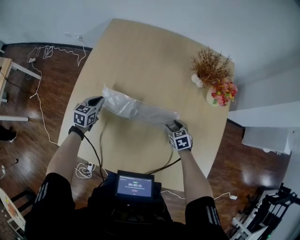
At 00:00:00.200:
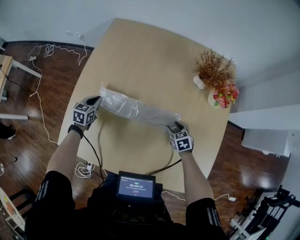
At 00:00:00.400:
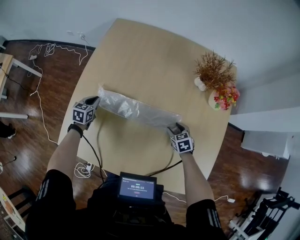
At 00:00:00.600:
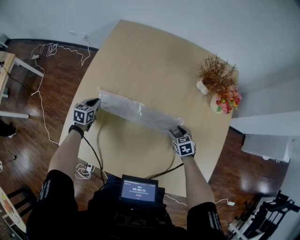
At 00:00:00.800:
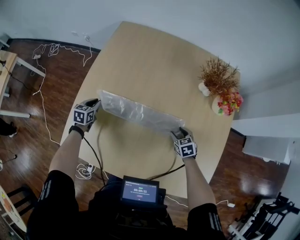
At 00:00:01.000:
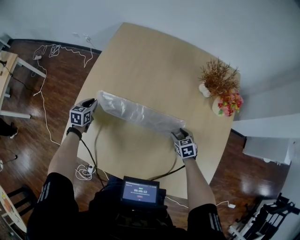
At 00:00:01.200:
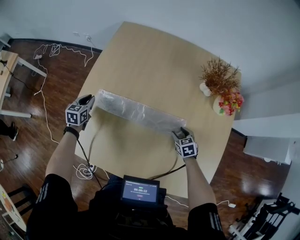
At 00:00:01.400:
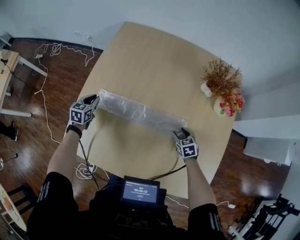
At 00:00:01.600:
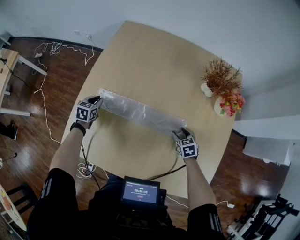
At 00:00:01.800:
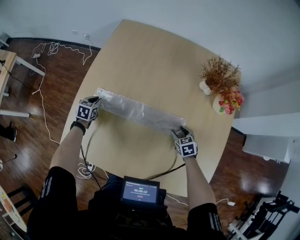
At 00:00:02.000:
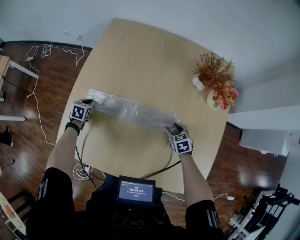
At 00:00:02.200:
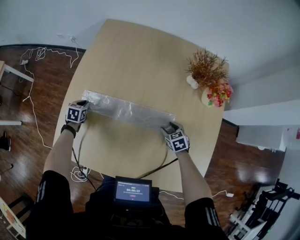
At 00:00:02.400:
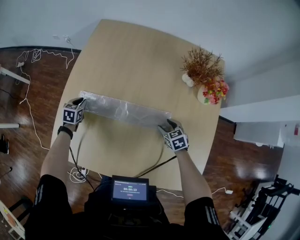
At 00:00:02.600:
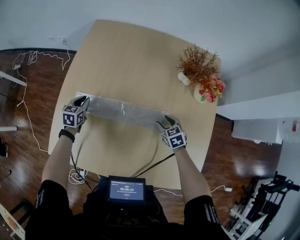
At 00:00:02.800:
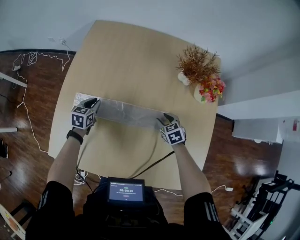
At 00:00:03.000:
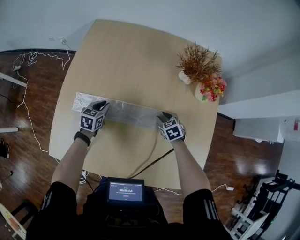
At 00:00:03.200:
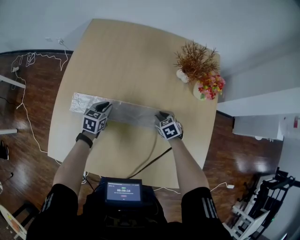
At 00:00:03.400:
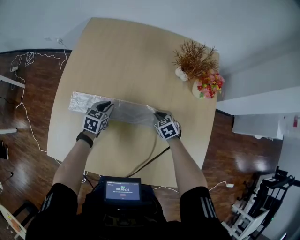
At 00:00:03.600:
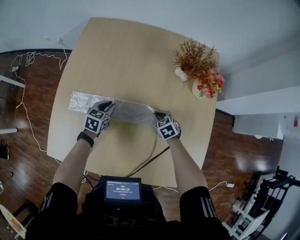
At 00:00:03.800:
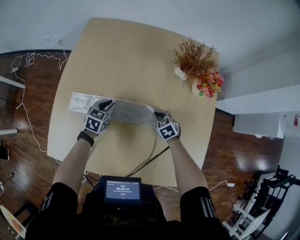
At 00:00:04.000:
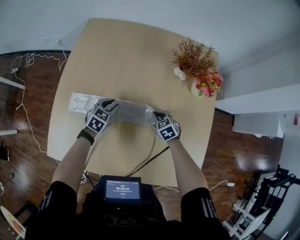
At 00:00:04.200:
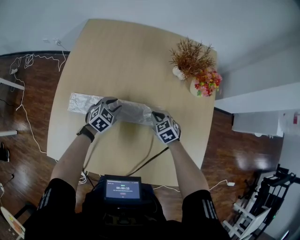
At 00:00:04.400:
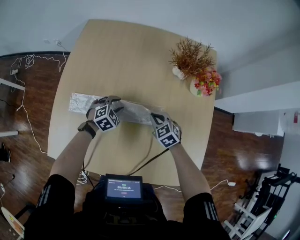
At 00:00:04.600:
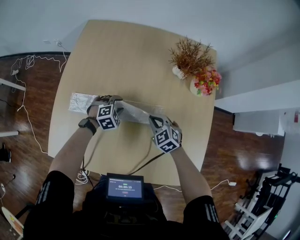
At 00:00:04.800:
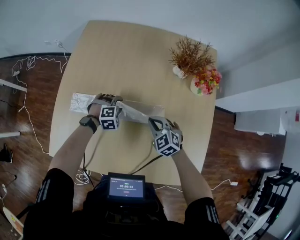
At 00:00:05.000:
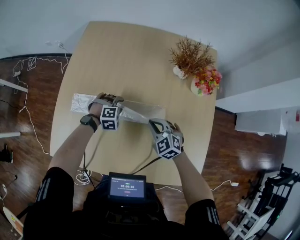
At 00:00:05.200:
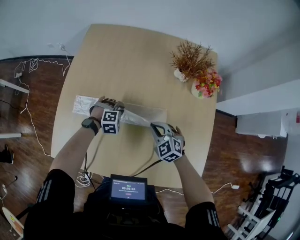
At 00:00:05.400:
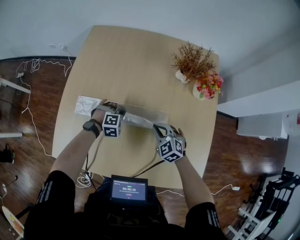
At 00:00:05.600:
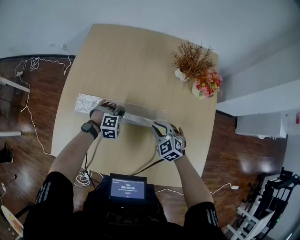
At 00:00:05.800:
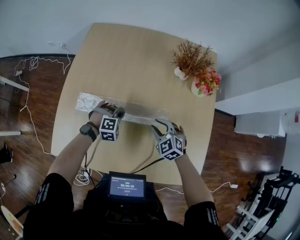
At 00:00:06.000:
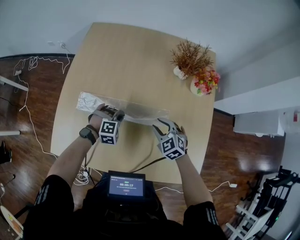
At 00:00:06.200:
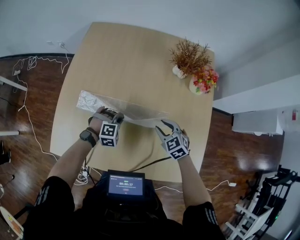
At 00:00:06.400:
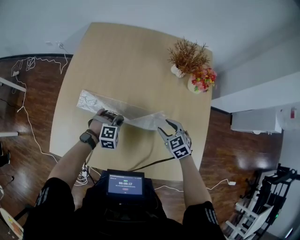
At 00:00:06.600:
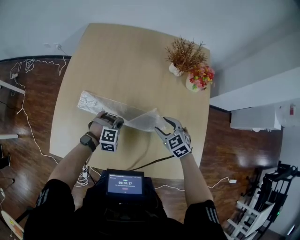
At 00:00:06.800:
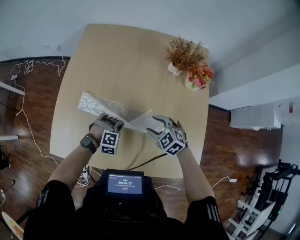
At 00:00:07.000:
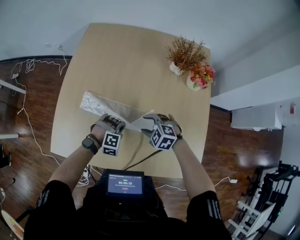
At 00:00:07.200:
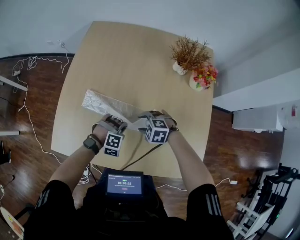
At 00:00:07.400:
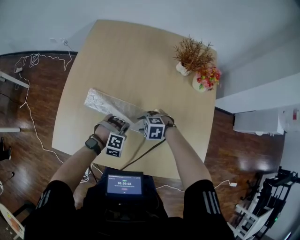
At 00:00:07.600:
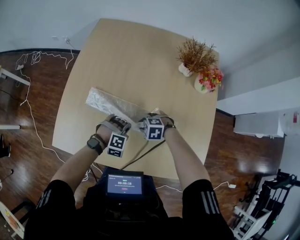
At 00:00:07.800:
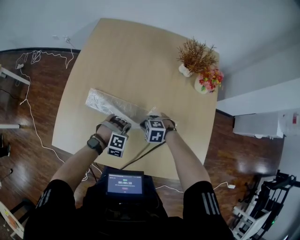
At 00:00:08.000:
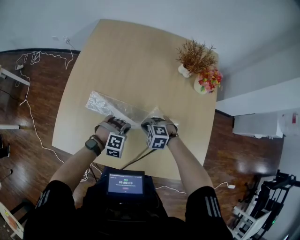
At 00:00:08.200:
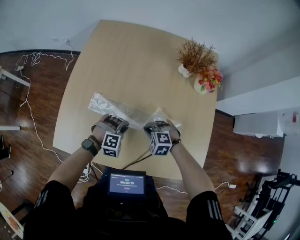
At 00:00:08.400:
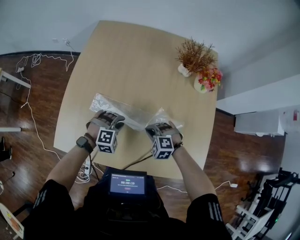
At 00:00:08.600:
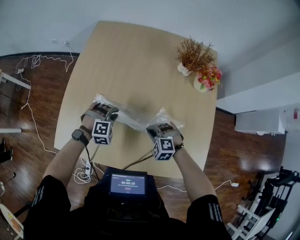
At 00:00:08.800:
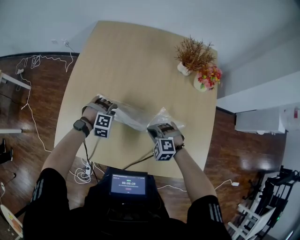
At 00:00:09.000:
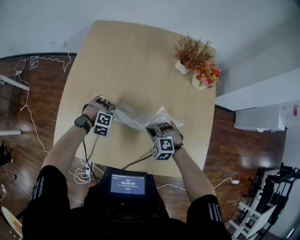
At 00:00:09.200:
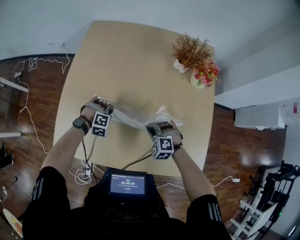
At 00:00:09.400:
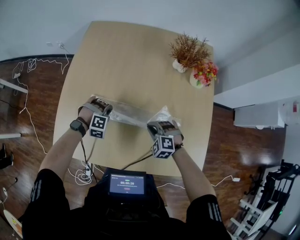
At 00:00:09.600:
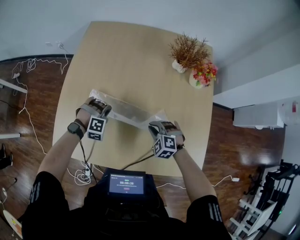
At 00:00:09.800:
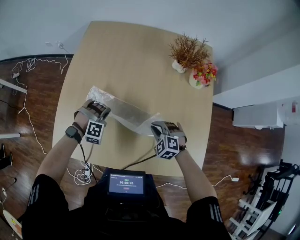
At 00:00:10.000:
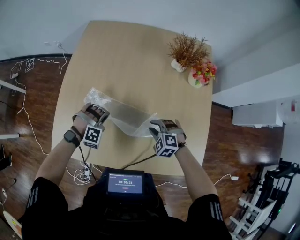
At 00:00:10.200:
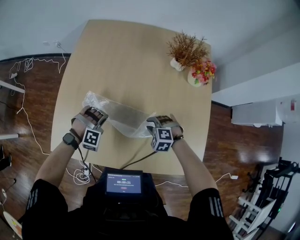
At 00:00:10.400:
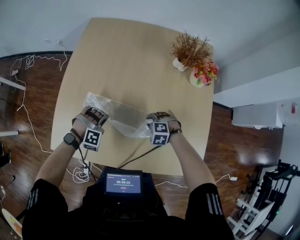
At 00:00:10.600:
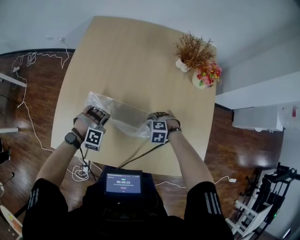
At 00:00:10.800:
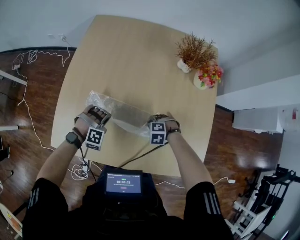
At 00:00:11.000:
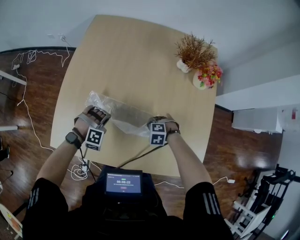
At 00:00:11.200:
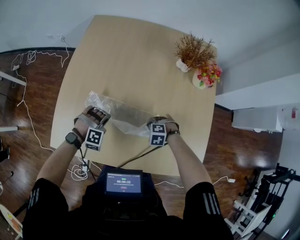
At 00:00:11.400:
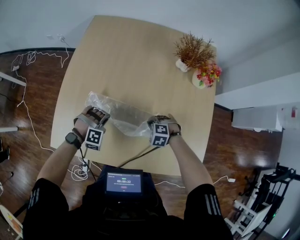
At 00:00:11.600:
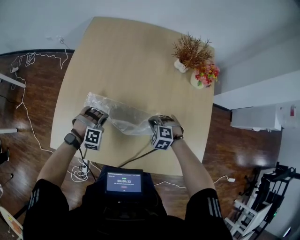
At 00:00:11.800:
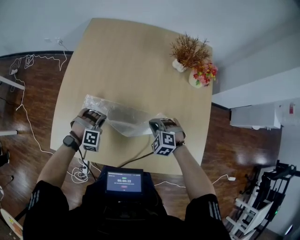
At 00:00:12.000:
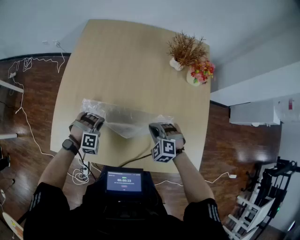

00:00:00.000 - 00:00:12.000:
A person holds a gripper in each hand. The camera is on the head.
00:00:00.000 - 00:00:01.600: The left gripper travels to the left by about 10 cm.
00:00:01.600 - 00:00:03.000: The left gripper moves to the right, roughly 15 cm. Meanwhile the right gripper ends up approximately 5 cm from where it was.
00:00:03.000 - 00:00:04.400: The right gripper shifts some 5 cm upward, and closes its fingers, while the left gripper goes approximately 10 cm to the right, and twists roughly 50 degrees clockwise, seen from behind.
00:00:04.400 - 00:00:06.000: Both grippers travel together backward, roughly 5 cm. The right gripper opens its fingers. Meanwhile the left gripper changes its angle by some 30 degrees, and closes up.
00:00:06.000 - 00:00:07.600: The left gripper moves some 10 cm. The right gripper moves roughly 15 cm, and changes its angle by roughly 50 degrees.
00:00:07.600 - 00:00:09.000: The right gripper heads upward, covering approximately 5 cm, rotates roughly 30 degrees, and closes its fingers. Meanwhile the left gripper changes place by roughly 10 cm, and opens up.
00:00:09.000 - 00:00:10.400: The left gripper heads upward, covering roughly 5 cm; the right gripper heads downward, covering about 5 cm, and opens up.
00:00:10.400 - 00:00:12.000: The right gripper moves upward, roughly 10 cm, swivels about 20 degrees, and closes.

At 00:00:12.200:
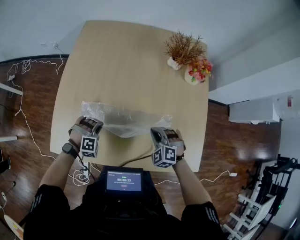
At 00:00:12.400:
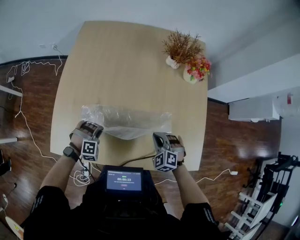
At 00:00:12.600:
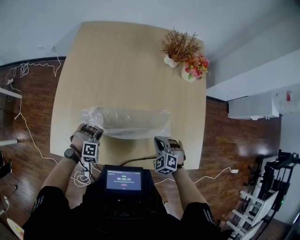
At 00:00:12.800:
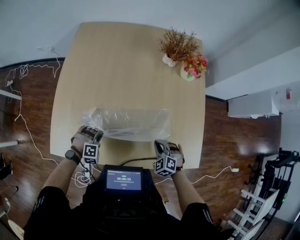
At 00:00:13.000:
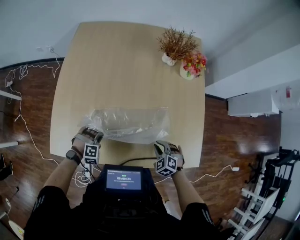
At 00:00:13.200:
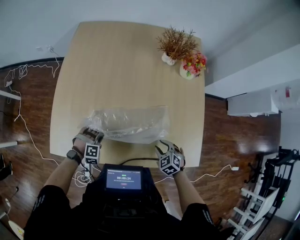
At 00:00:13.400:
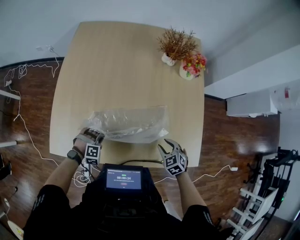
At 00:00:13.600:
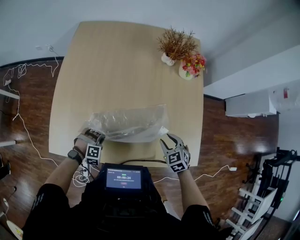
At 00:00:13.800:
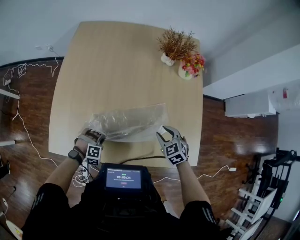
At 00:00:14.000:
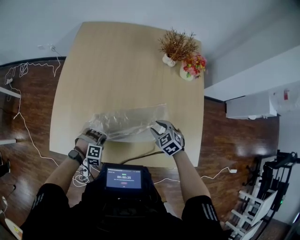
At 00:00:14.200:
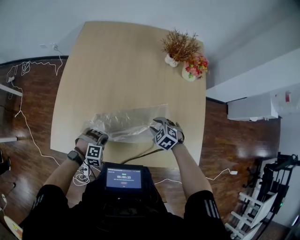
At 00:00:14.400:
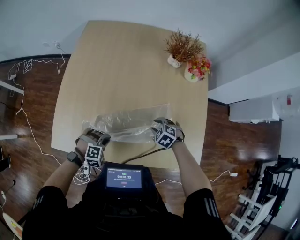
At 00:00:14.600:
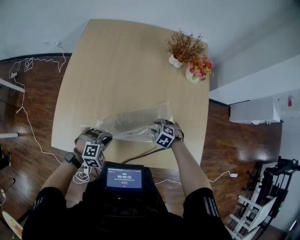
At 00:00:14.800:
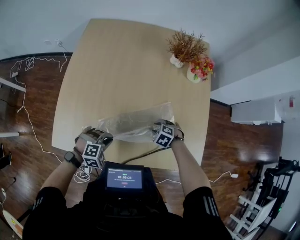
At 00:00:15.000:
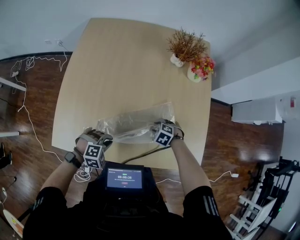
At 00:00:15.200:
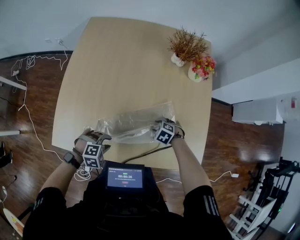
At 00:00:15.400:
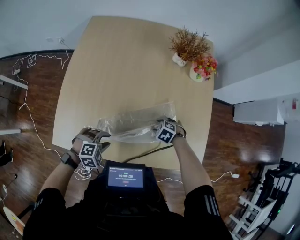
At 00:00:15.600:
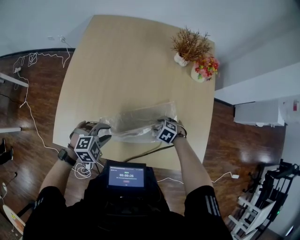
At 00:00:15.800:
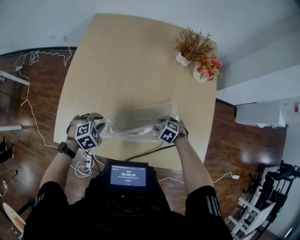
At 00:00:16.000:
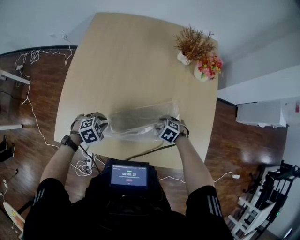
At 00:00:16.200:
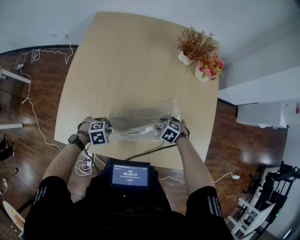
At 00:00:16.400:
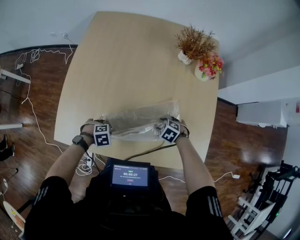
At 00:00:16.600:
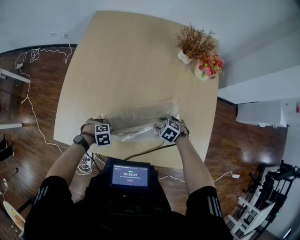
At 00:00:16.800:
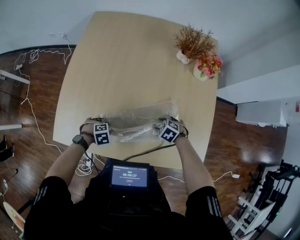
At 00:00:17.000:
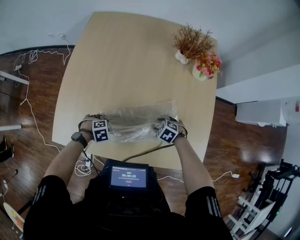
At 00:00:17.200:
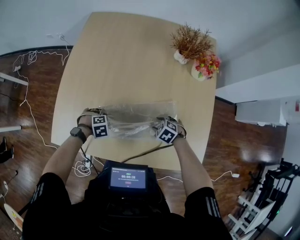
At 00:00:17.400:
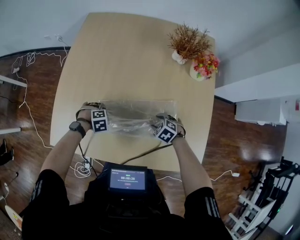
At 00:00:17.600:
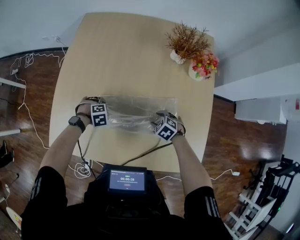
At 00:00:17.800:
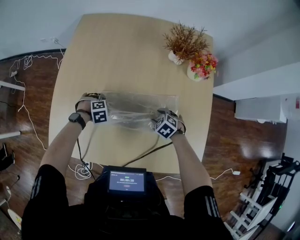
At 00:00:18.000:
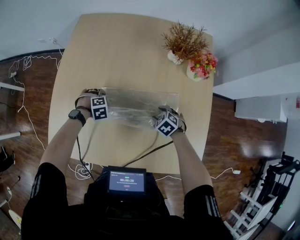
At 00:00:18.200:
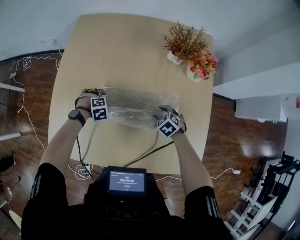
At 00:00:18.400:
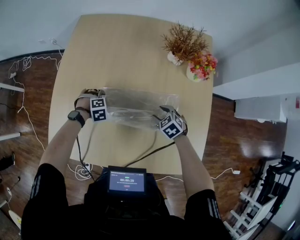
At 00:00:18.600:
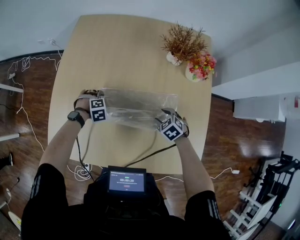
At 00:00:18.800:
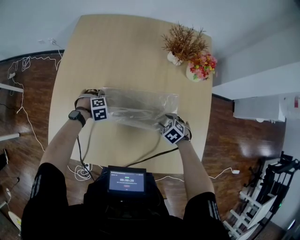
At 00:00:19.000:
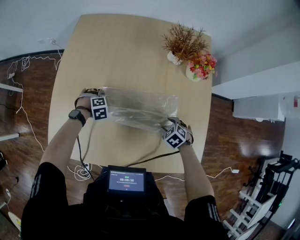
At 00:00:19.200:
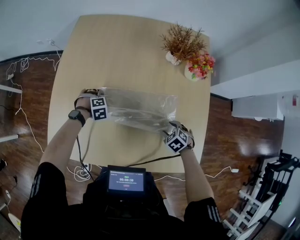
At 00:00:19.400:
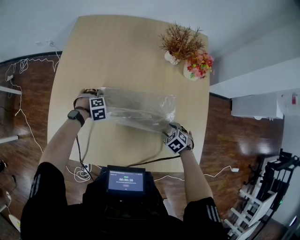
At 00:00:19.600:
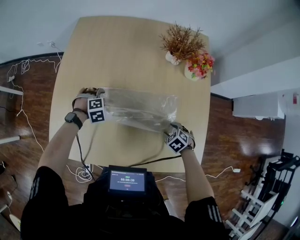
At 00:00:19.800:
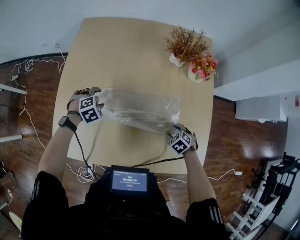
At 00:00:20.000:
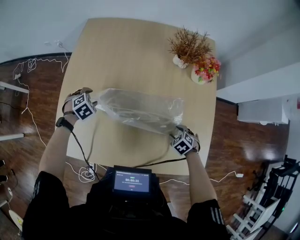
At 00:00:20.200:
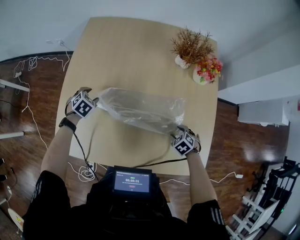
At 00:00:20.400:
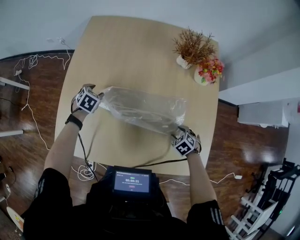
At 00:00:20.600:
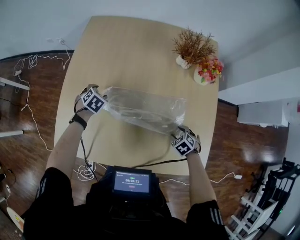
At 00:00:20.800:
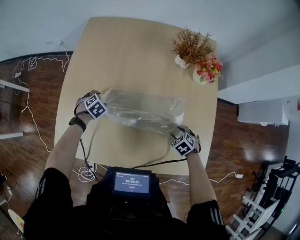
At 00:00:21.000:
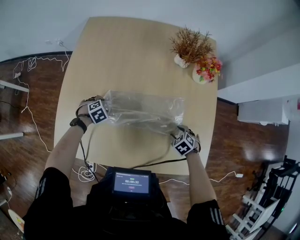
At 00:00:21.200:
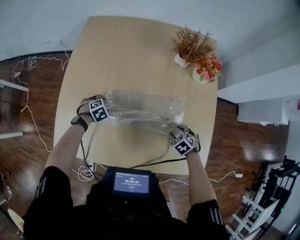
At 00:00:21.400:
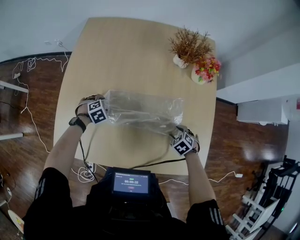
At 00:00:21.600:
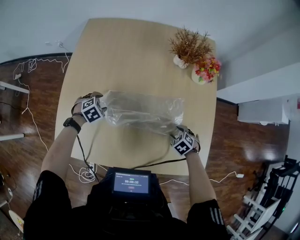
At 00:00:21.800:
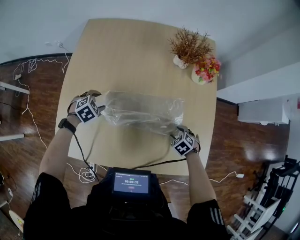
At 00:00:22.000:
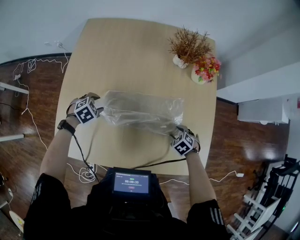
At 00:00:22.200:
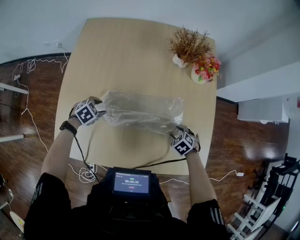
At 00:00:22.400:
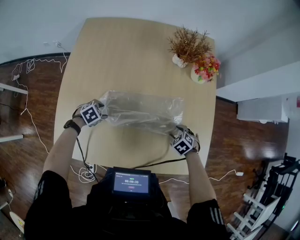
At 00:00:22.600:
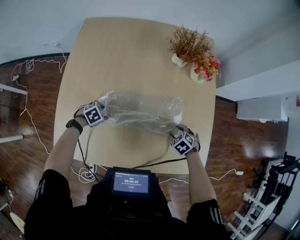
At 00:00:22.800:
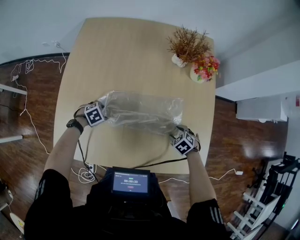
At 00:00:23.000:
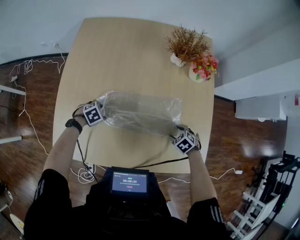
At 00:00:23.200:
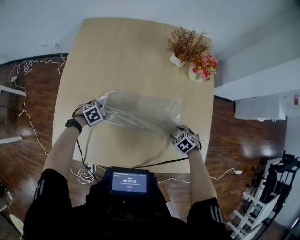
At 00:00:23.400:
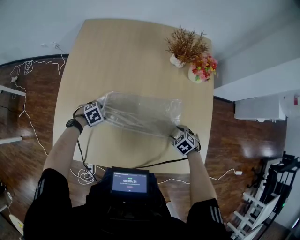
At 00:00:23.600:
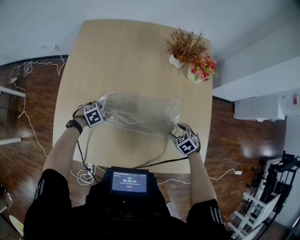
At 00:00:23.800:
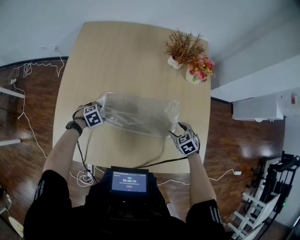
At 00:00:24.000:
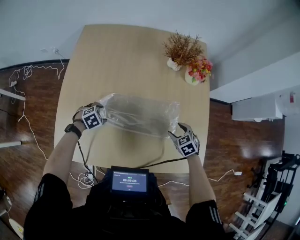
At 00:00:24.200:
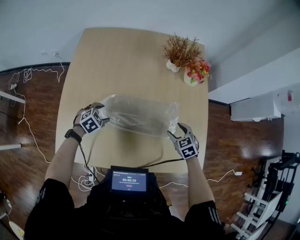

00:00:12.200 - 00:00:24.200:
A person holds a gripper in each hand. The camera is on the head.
00:00:12.200 - 00:00:13.800: The right gripper heads to the right, covering roughly 5 cm, goes backward and returns, some 10 cm each way, swivels approximately 30 degrees, and opens. The left gripper moves backward and downward, roughly 10 cm.
00:00:13.800 - 00:00:15.200: The left gripper is displaced upward by some 5 cm, rotates some 20 degrees, and opens up. The right gripper goes about 15 cm downward, and rotates approximately 40 degrees.
00:00:15.200 - 00:00:16.600: The left gripper moves downward, some 10 cm, and swivels some 20 degrees.
00:00:16.600 - 00:00:18.200: The right gripper changes place by some 10 cm. Meanwhile the left gripper ends up roughly 25 cm from where it was, and opens its fingers.
00:00:18.200 - 00:00:19.800: The left gripper travels upward by about 10 cm. Meanwhile the right gripper moves about 15 cm.
00:00:19.800 - 00:00:21.200: The left gripper is displaced downward by approximately 10 cm.
00:00:21.200 - 00:00:22.600: The left gripper goes upward and returns, about 10 cm each way.
00:00:22.600 - 00:00:24.200: Both grippers move upward, roughly 10 cm. The right gripper changes its angle by roughly 30 degrees.
